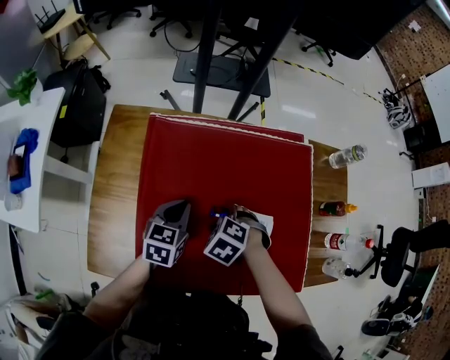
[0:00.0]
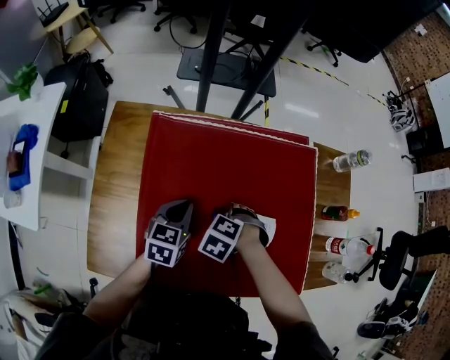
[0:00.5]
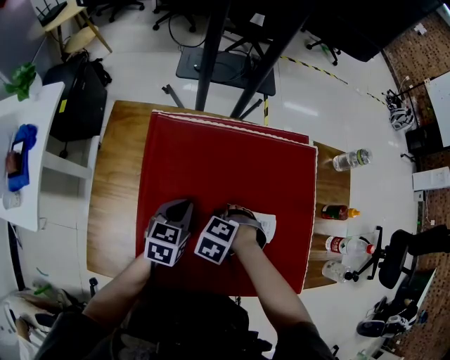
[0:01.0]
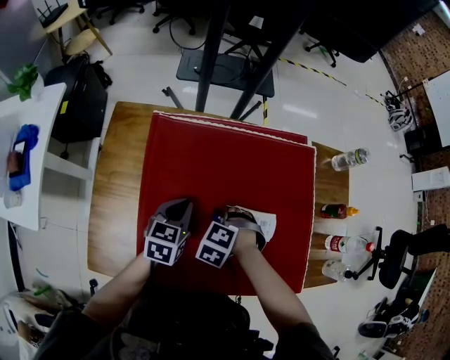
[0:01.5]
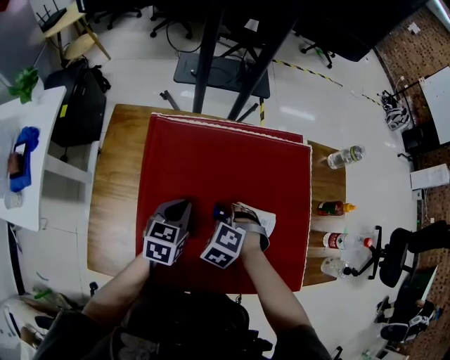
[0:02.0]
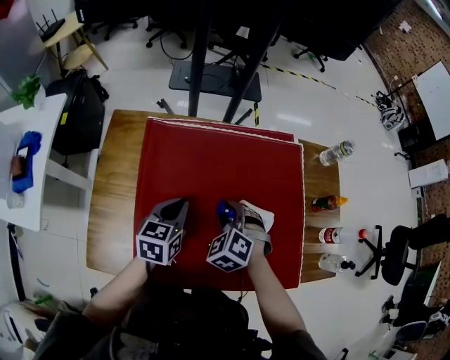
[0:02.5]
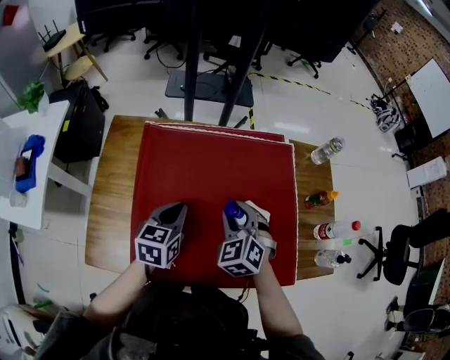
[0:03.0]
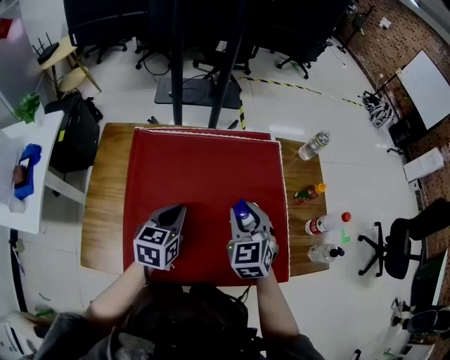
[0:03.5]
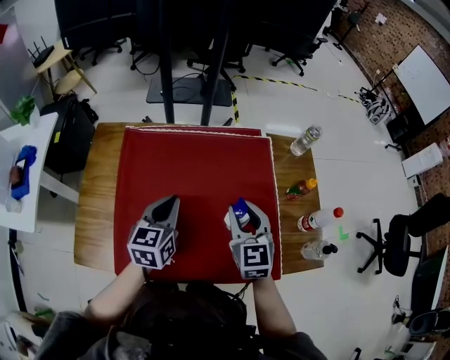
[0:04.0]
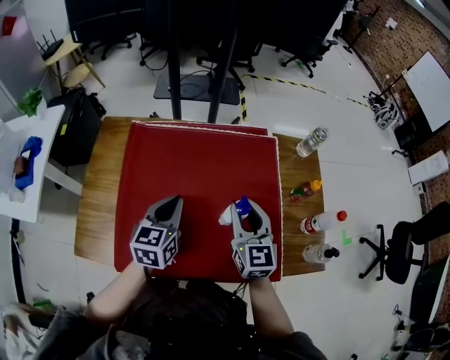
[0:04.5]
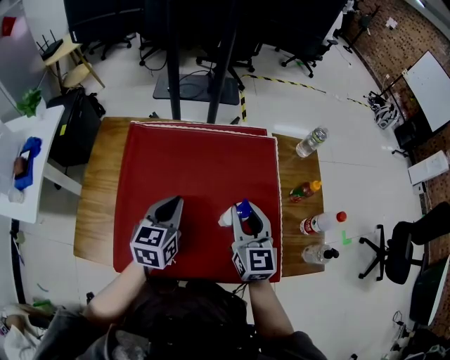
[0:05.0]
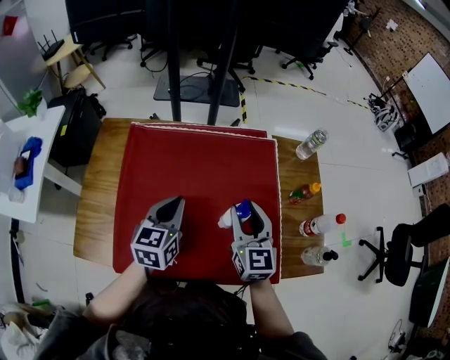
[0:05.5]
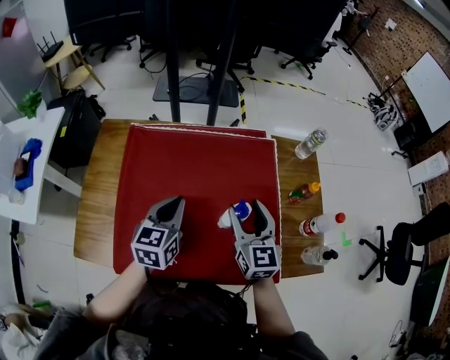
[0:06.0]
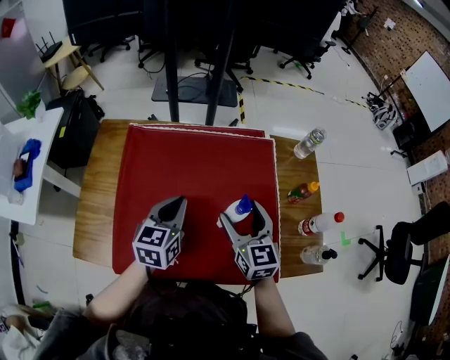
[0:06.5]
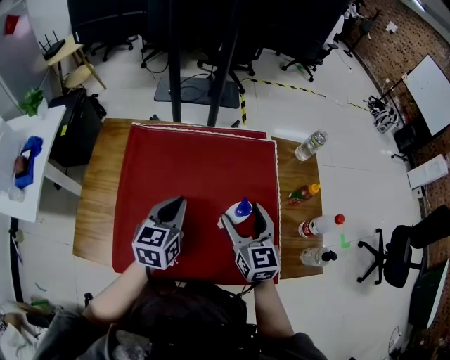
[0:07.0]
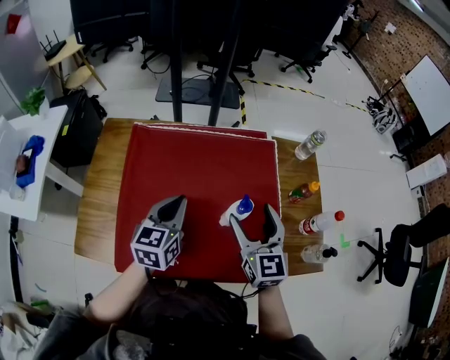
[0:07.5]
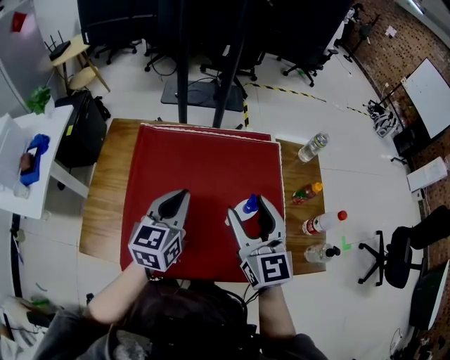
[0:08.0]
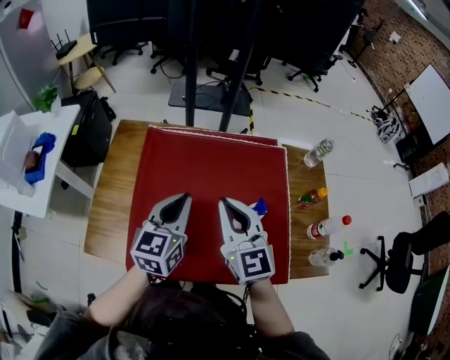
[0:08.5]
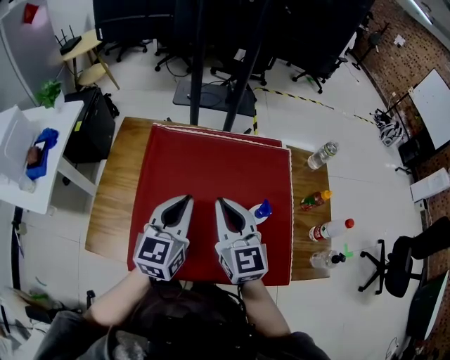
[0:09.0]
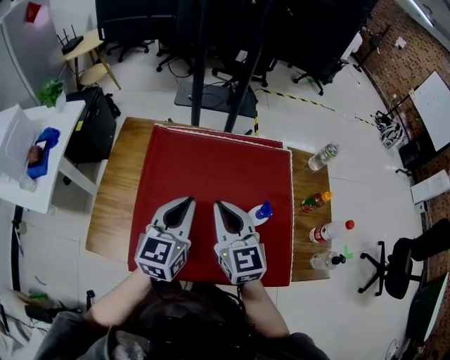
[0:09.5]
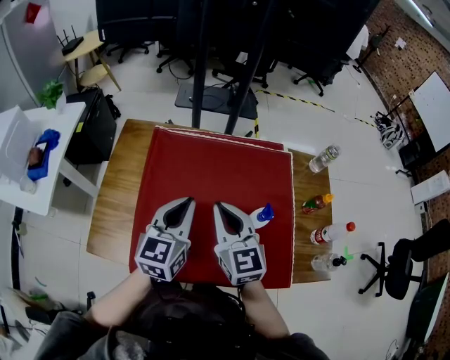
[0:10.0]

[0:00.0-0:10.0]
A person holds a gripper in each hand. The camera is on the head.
0:00.0 to 0:02.0: The grippers move only a little.
0:02.0 to 0:04.0: The right gripper heads to the right and upward, covering roughly 25 cm, and angles its fingers upward, by about 50 degrees. The left gripper shifts roughly 20 cm to the right, upward and backward.
0:04.0 to 0:06.0: The grippers make only small movements.
0:06.0 to 0:08.0: The left gripper is displaced upward by roughly 5 cm; the right gripper goes roughly 10 cm upward and to the left.
0:08.0 to 0:10.0: The right gripper goes roughly 10 cm to the left, and closes its fingers.

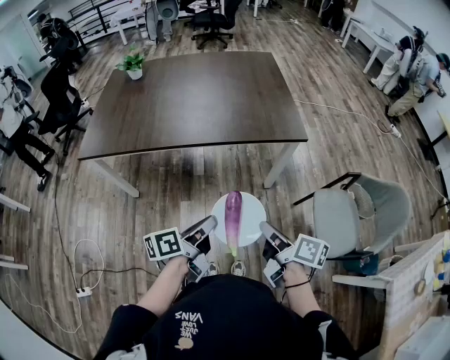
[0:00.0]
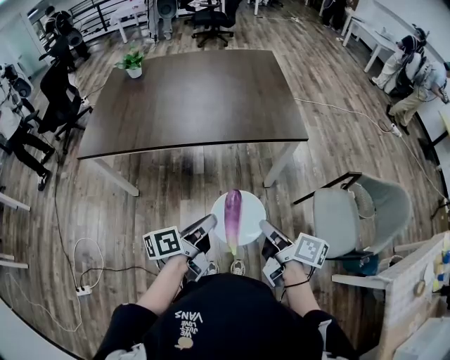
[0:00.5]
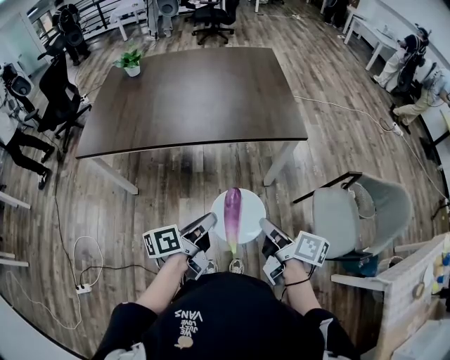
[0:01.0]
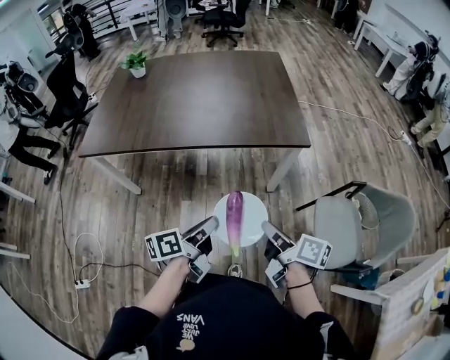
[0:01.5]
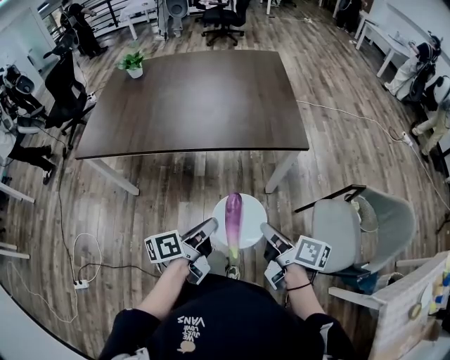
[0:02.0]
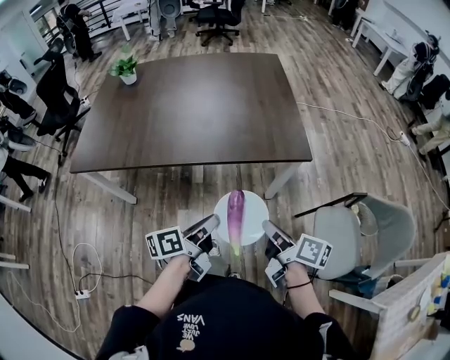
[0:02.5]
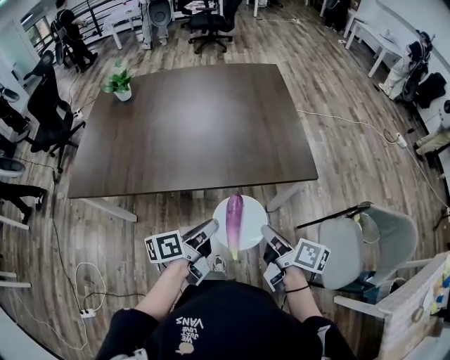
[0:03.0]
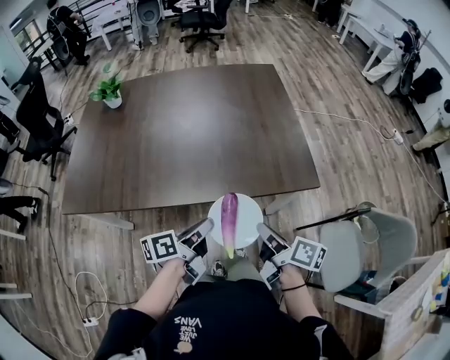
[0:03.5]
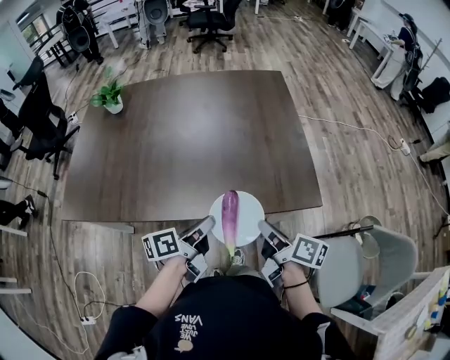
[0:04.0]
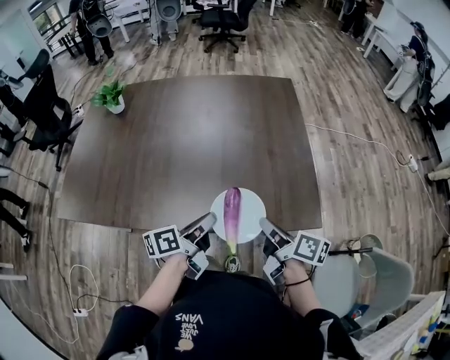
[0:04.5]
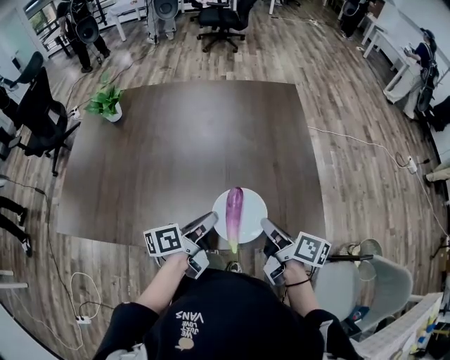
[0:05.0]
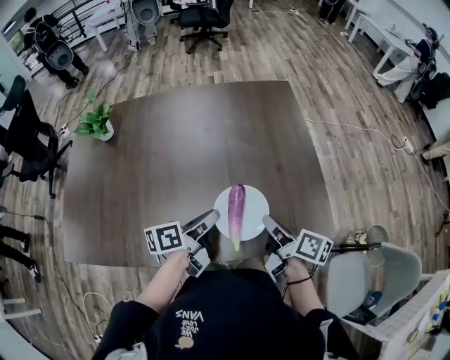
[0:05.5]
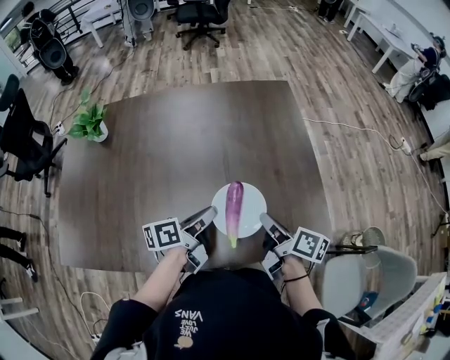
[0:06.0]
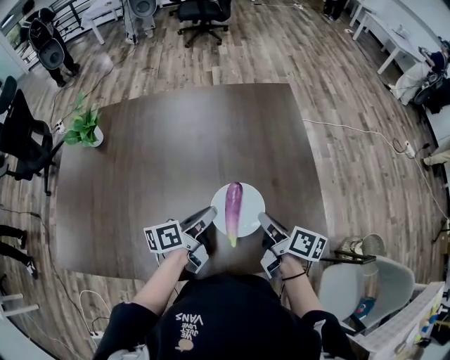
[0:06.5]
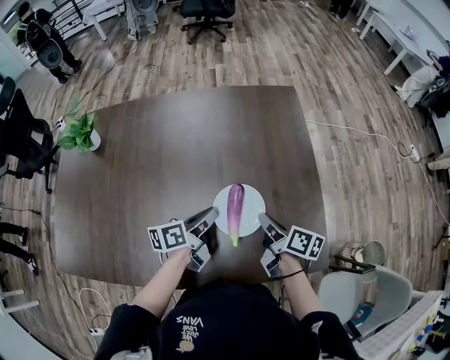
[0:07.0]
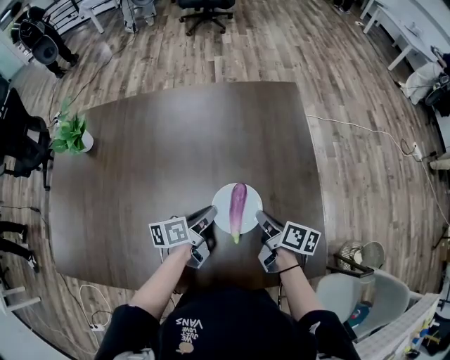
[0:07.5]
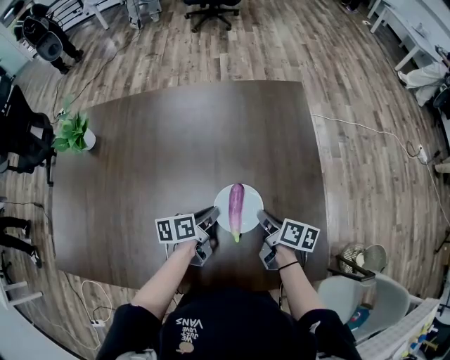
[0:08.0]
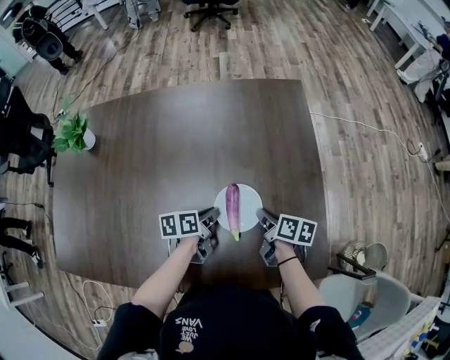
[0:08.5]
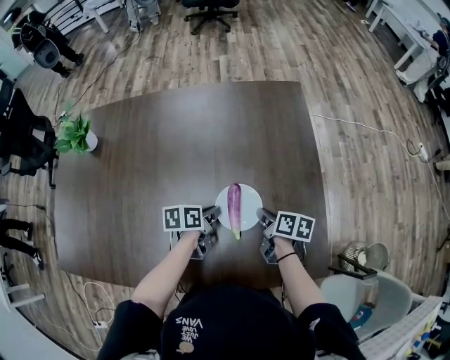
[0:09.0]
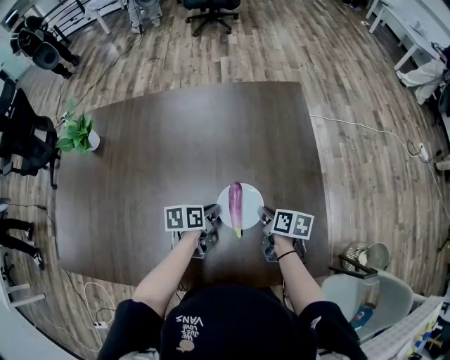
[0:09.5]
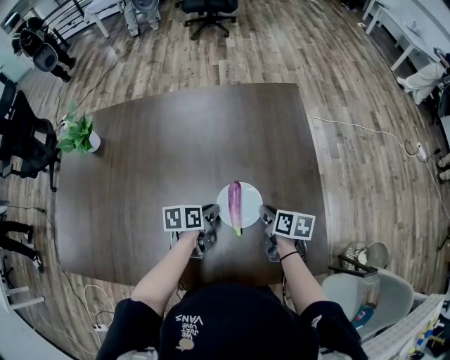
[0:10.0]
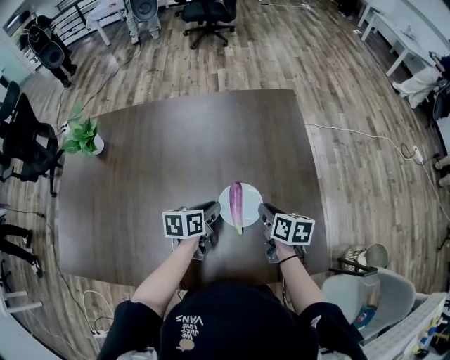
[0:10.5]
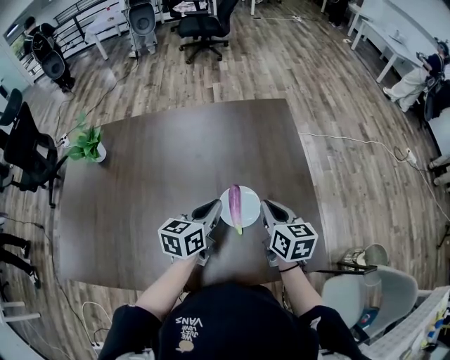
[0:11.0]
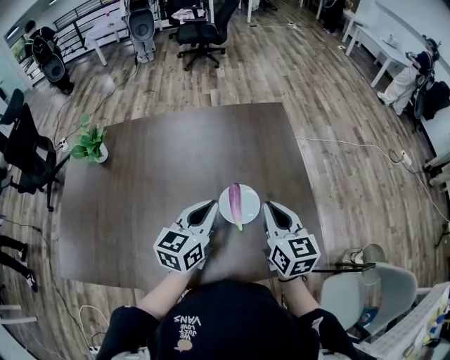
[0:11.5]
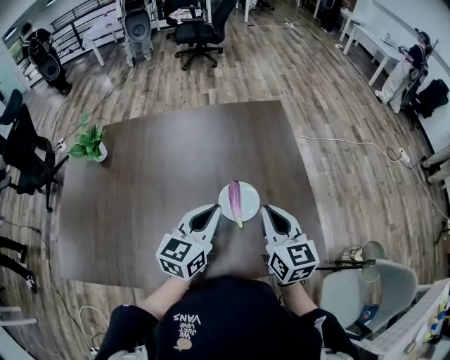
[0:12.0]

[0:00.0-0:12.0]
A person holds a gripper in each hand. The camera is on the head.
0:00.0 to 0:02.0: The left gripper heads to the right, covering about 5 cm. Meanwhile the right gripper shifts about 10 cm to the right and forward.
0:02.0 to 0:04.0: Both grippers move forward, roughly 30 cm.
0:04.0 to 0:06.0: Both grippers travel together forward, about 20 cm.
0:06.0 to 0:08.0: Both grippers move forward and downward, some 20 cm.
0:08.0 to 0:10.0: There are only small adjustments of the grippers.
0:10.0 to 0:12.0: The grippers both shift upward by roughly 20 cm. The right gripper tilts its fingers approximately 30 degrees upward, while the left gripper points its fingers some 30 degrees further upward.

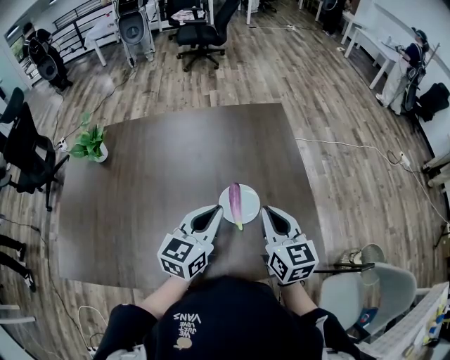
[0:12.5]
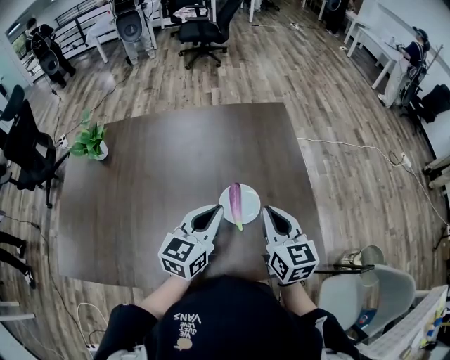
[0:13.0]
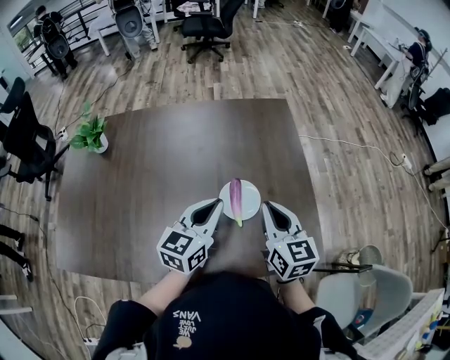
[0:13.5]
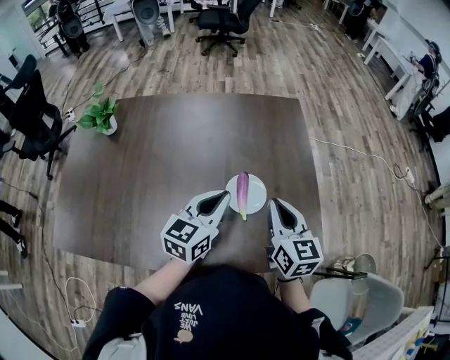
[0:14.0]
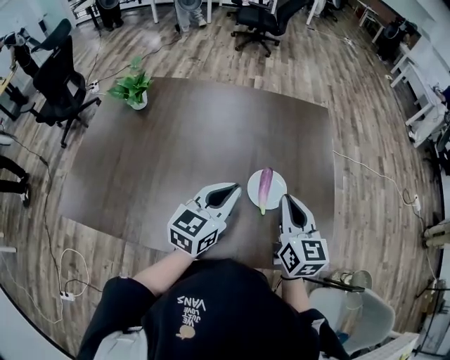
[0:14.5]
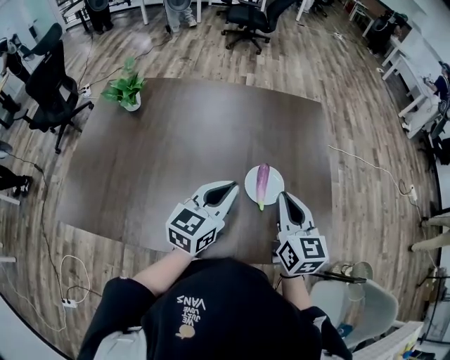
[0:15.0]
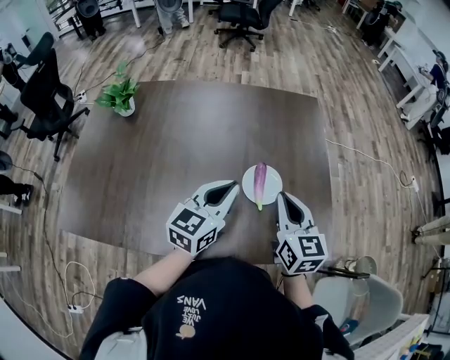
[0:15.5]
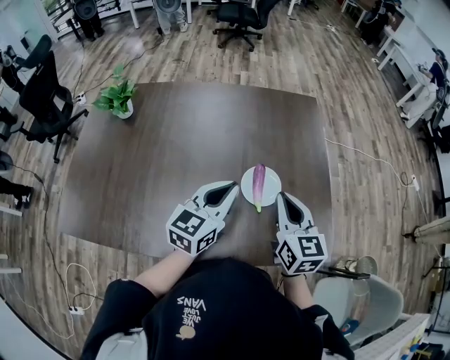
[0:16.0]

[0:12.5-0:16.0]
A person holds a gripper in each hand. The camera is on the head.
0:12.5 to 0:14.5: The left gripper changes place by some 5 cm.
0:14.5 to 0:16.0: The grippers make only small movements.

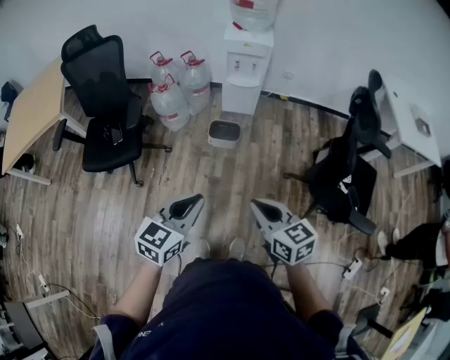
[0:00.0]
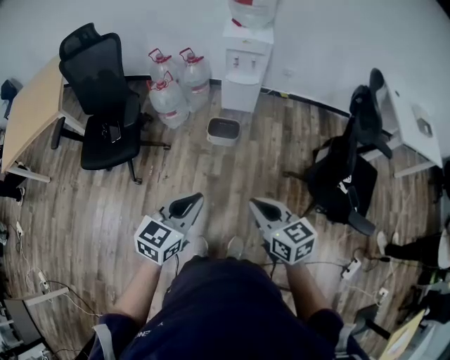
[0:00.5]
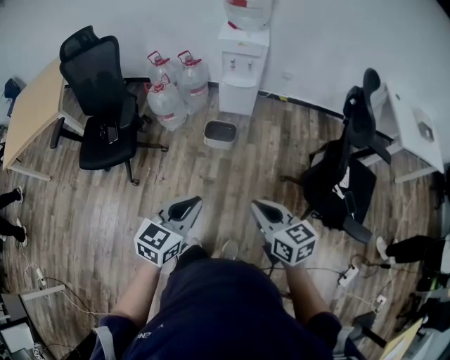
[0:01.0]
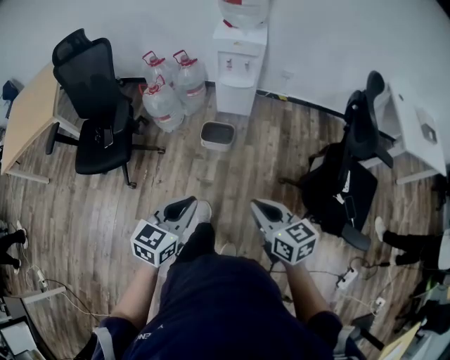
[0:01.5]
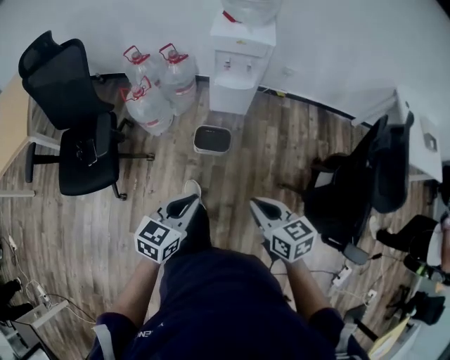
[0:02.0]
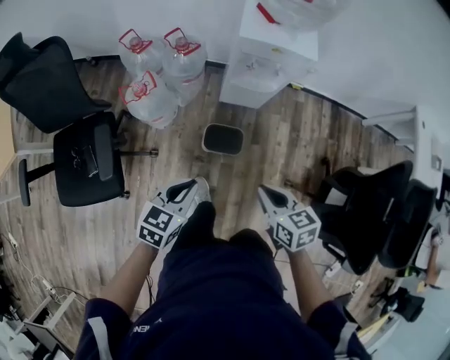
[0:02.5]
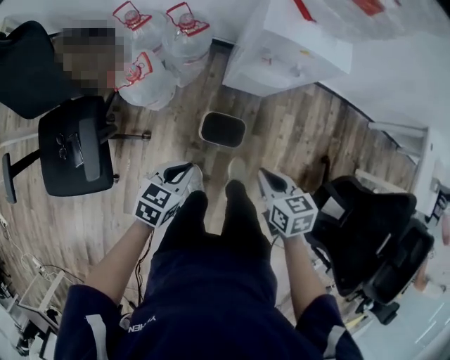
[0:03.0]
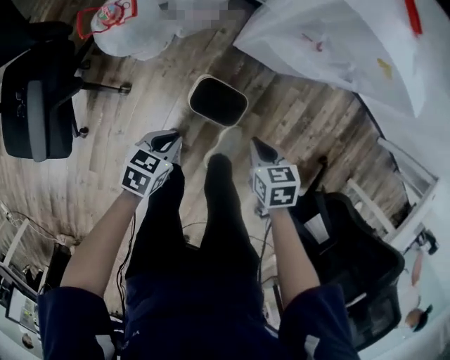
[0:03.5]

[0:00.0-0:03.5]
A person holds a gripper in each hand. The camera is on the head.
0:00.0 to 0:02.0: The left gripper is displaced forward and downward by about 25 cm. Meanwhile the right gripper travels forward by roughly 25 cm.
0:02.0 to 0:03.5: The right gripper moves forward and downward, about 50 cm, and angles its fingers downward, by about 30 degrees. The left gripper travels downward and forward by approximately 50 cm, and swivels about 30 degrees.
